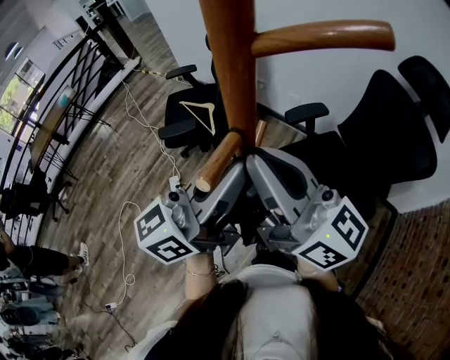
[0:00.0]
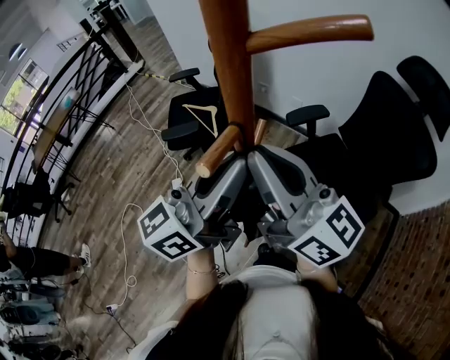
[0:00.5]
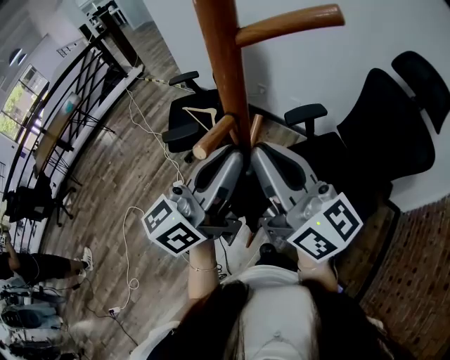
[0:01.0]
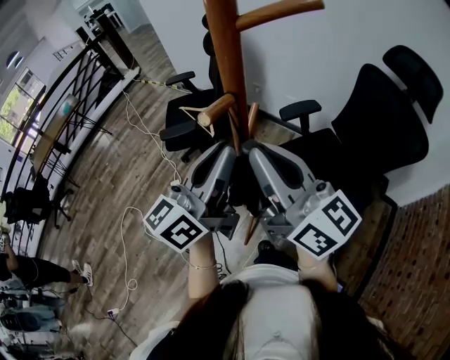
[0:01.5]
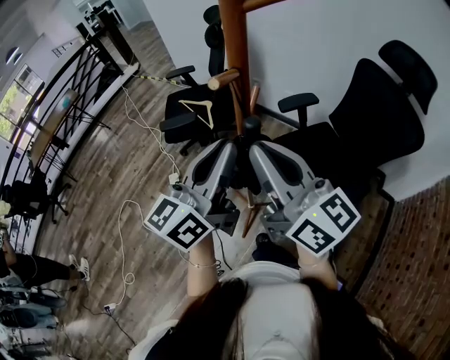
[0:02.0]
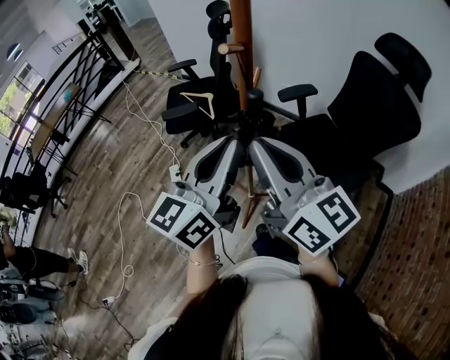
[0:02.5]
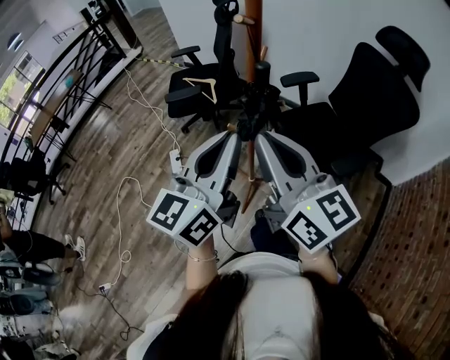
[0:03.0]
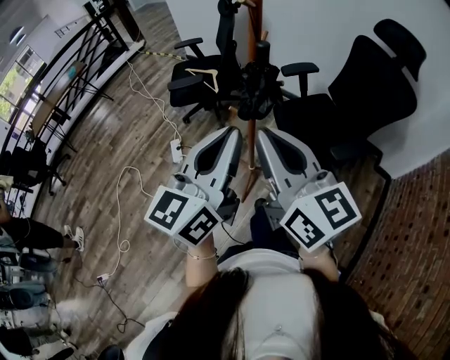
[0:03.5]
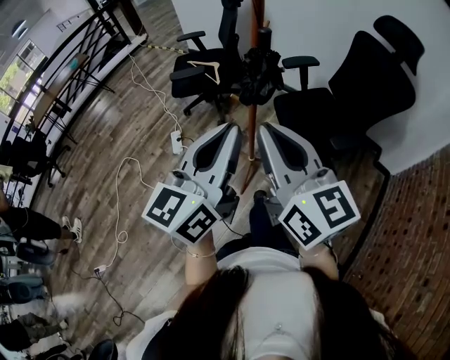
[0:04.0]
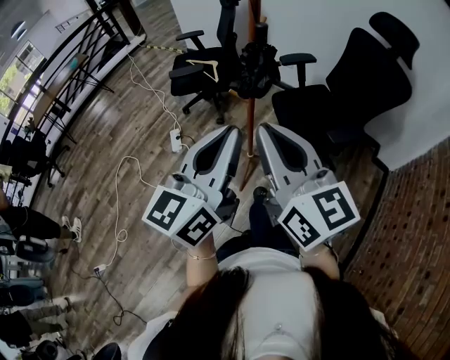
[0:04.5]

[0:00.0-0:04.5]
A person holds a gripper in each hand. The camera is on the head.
0:00.0 to 0:02.0: Both grippers travel together backward, roughly 5 cm.
0:02.0 to 0:04.5: Both grippers travel together backward, about 25 cm.

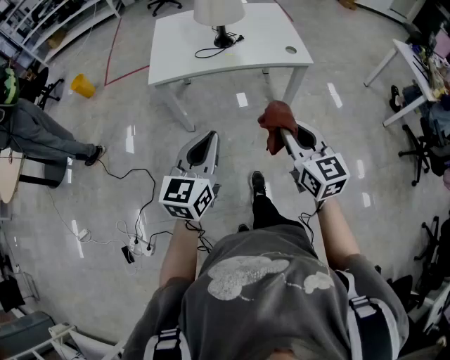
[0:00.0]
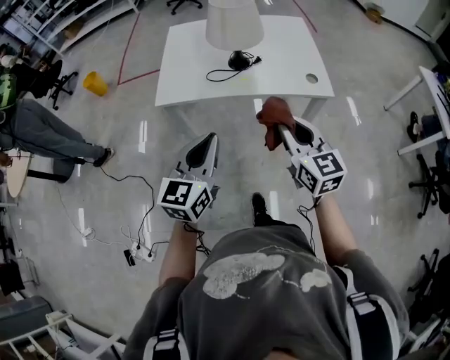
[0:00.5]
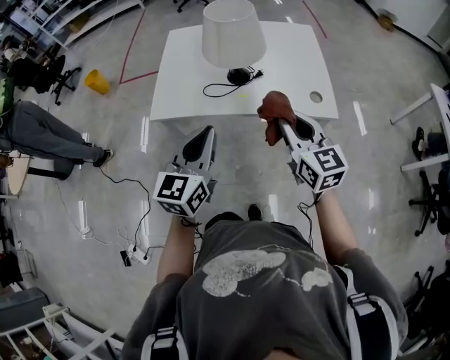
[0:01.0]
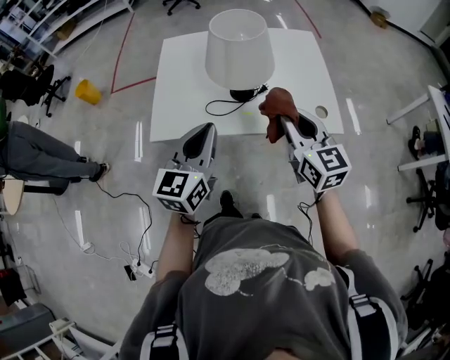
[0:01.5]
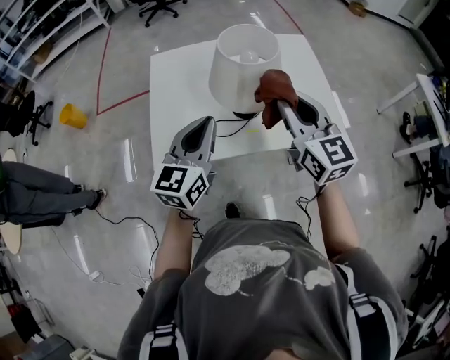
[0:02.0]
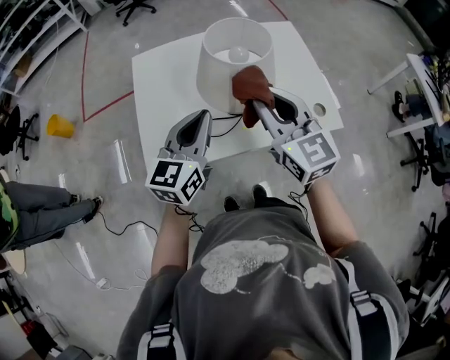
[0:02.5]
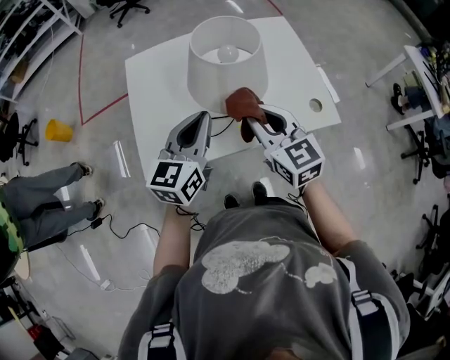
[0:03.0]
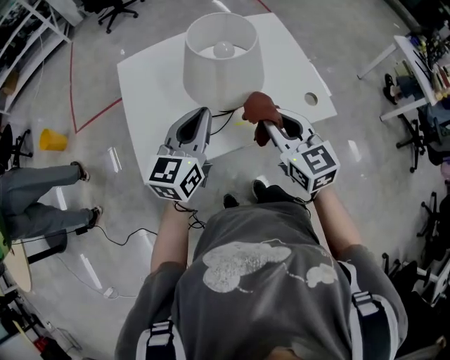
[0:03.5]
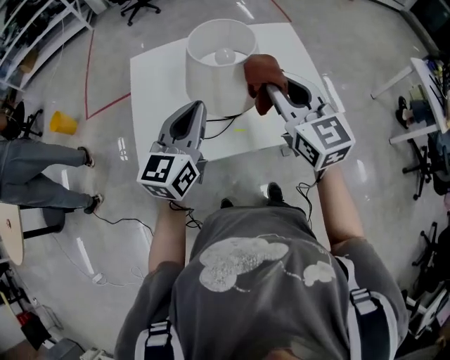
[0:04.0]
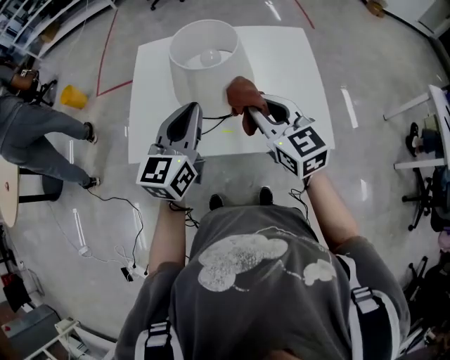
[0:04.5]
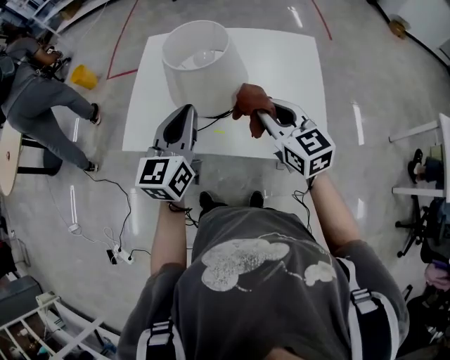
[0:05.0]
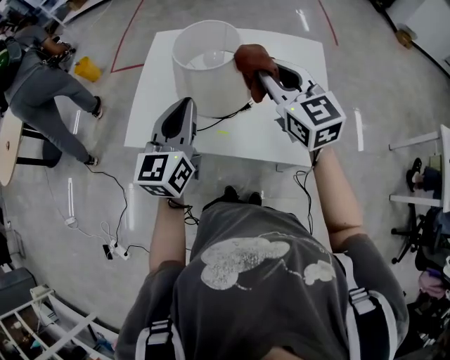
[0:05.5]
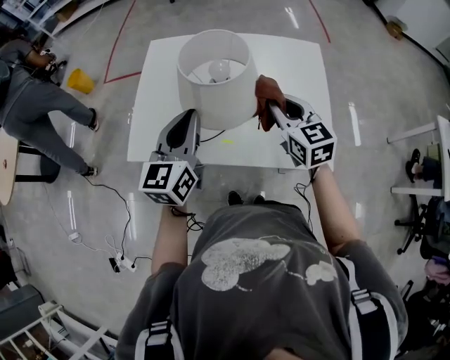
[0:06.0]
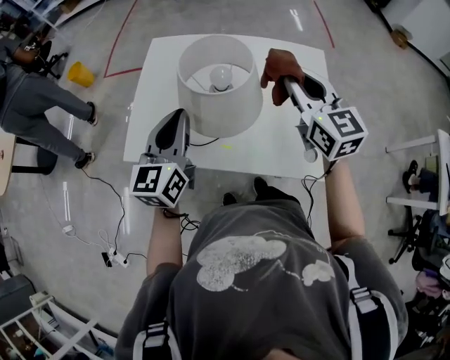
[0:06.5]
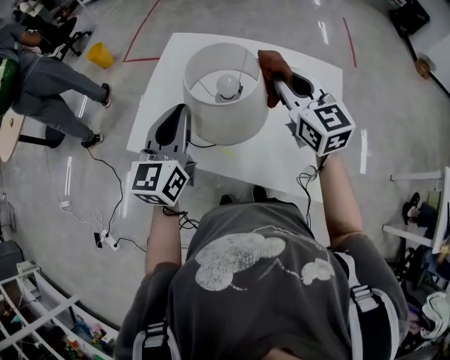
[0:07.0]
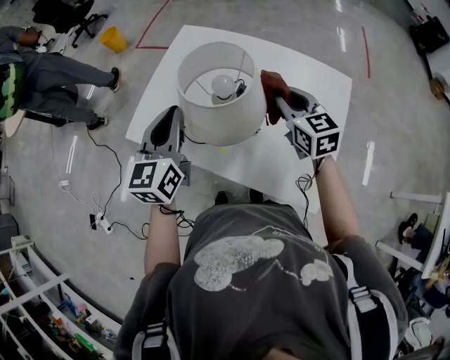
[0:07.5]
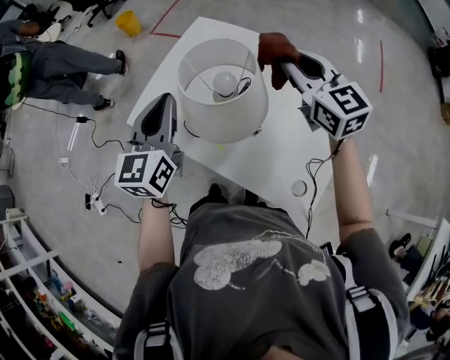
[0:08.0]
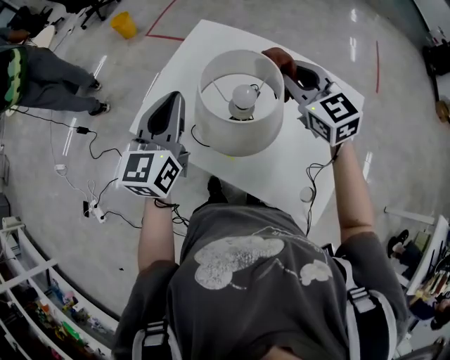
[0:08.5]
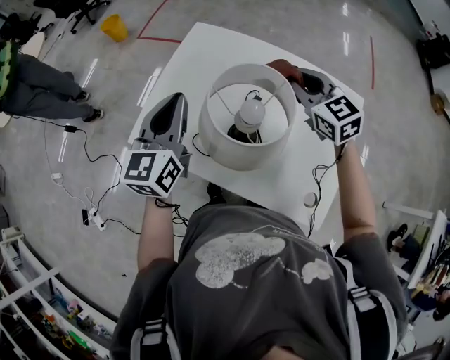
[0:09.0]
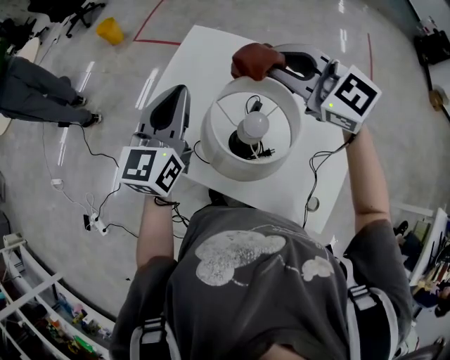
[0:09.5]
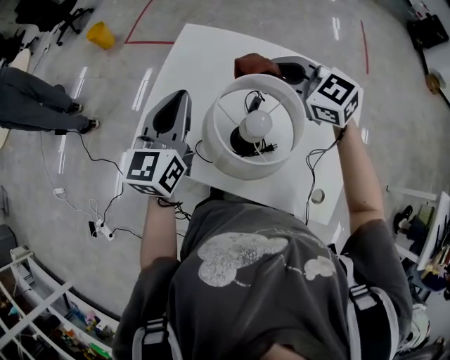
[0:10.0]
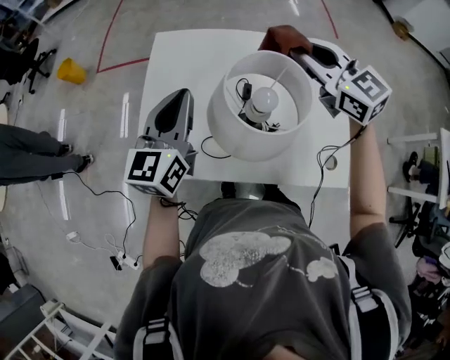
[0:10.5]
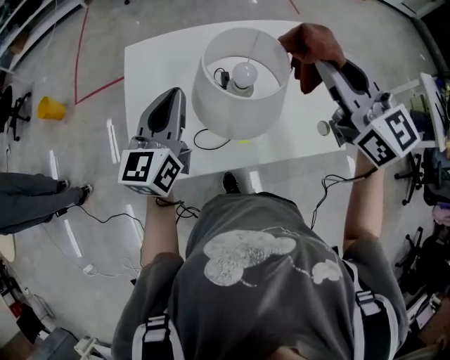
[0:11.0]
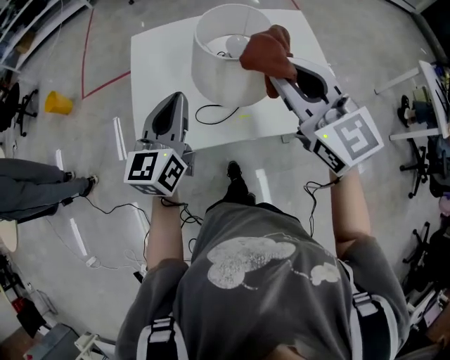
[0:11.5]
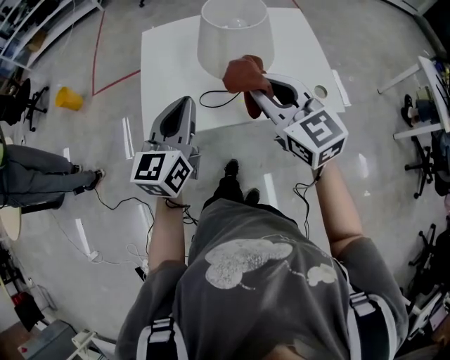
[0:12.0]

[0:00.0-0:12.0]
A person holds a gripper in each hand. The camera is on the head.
0:00.0 to 0:02.0: The pair of grippers is taken forward, roughly 50 cm.
0:02.0 to 0:04.0: The right gripper travels downward and back again, approximately 10 cm each way. Meanwhile the left gripper is displaced to the right by some 5 cm.
0:04.0 to 0:06.0: The left gripper changes its angle by about 20 degrees. The right gripper moves up and down over about 10 cm, changing direction 2 times.
0:06.0 to 0:08.0: The left gripper moves approximately 5 cm, and rotates some 30 degrees. Meanwhile the right gripper goes up and down, approximately 10 cm each way, reversing 2 times, and changes its angle by about 30 degrees.
0:08.0 to 0:10.0: The left gripper travels forward by about 10 cm. The right gripper swings up and down, approximately 10 cm each way, with 2 reversals, and swivels some 20 degrees.
0:10.0 to 0:12.0: The left gripper shifts by about 20 cm, and changes its angle by approximately 30 degrees; the right gripper moves approximately 15 cm upward and comes back, and turns by about 50 degrees.

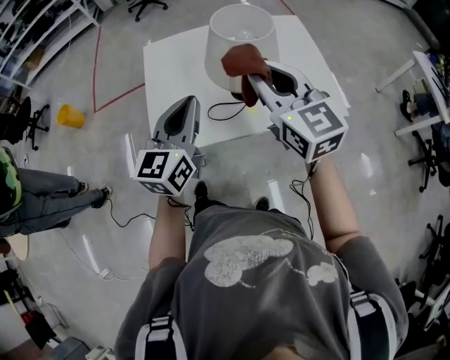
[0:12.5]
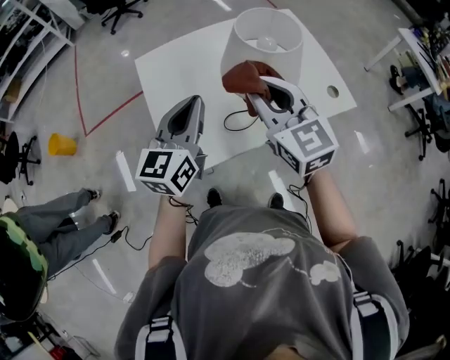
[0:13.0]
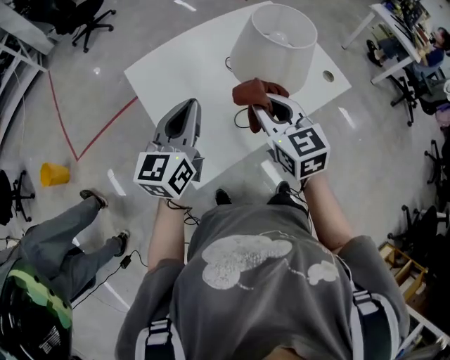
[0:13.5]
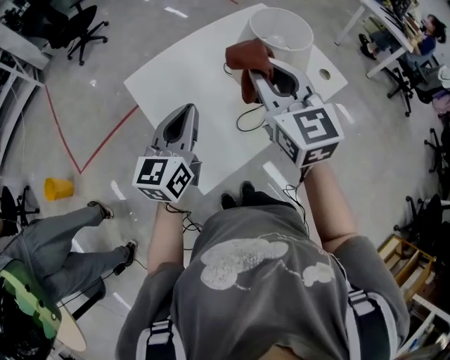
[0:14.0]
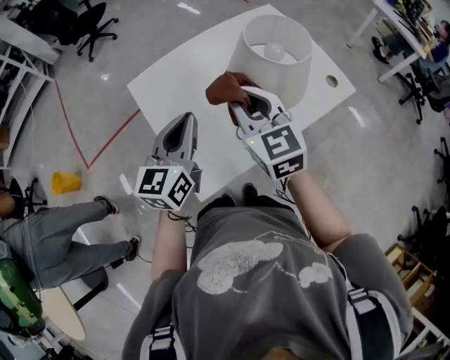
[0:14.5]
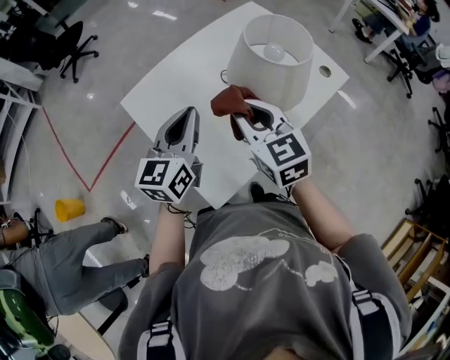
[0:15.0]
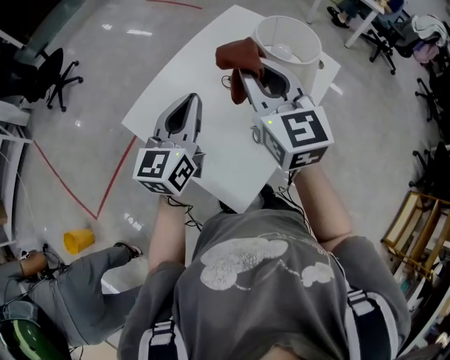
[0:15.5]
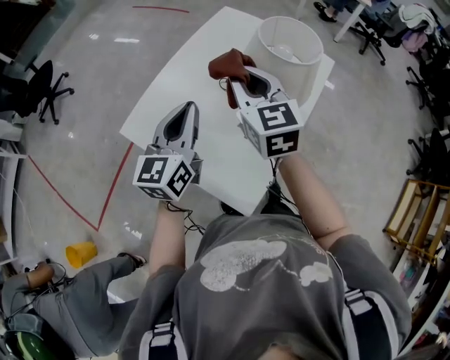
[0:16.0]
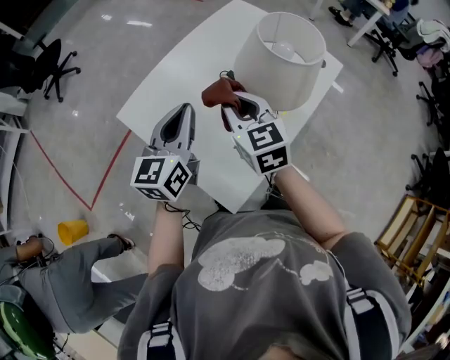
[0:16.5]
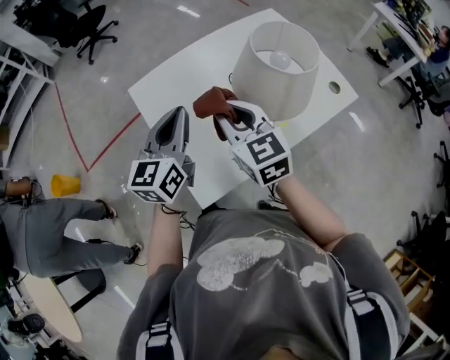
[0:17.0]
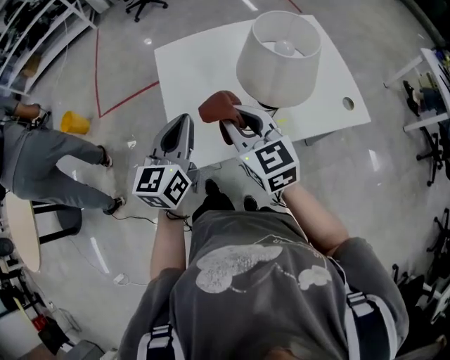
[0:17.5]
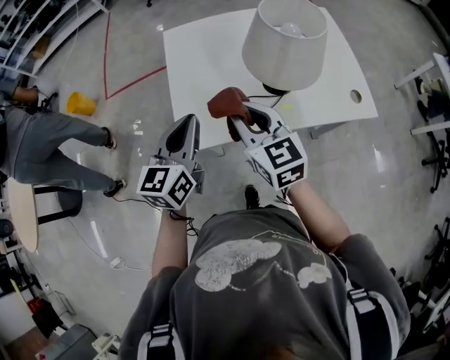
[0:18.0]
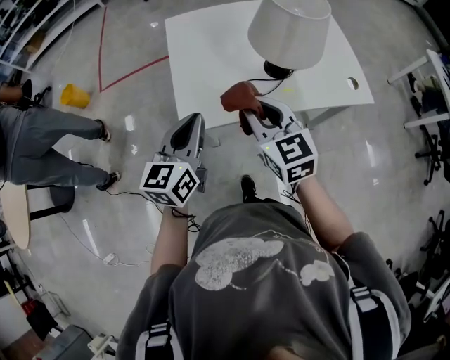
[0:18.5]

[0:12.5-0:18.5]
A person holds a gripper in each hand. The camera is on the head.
0:12.5 to 0:14.5: The right gripper moves up and down over approximately 10 cm, changing direction 2 times, and swivels about 30 degrees; the left gripper shifts by some 20 cm, and swivels roughly 20 degrees.
0:14.5 to 0:16.5: The left gripper shifts by approximately 10 cm, while the right gripper changes place by about 10 cm, and swivels about 20 degrees.
0:16.5 to 0:18.5: The right gripper shifts by approximately 25 cm, and turns by about 40 degrees. The left gripper moves about 30 cm, and swivels roughly 40 degrees.

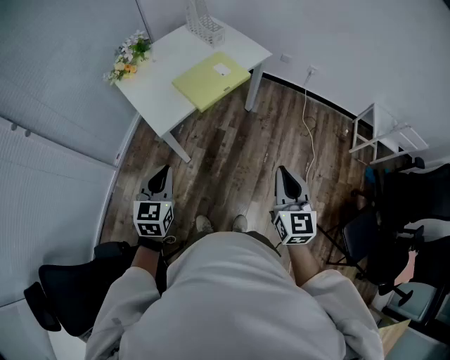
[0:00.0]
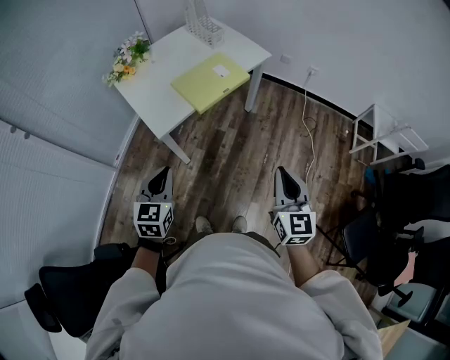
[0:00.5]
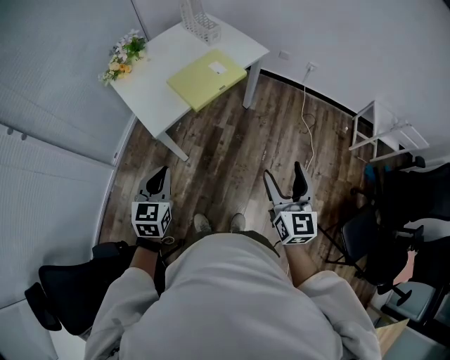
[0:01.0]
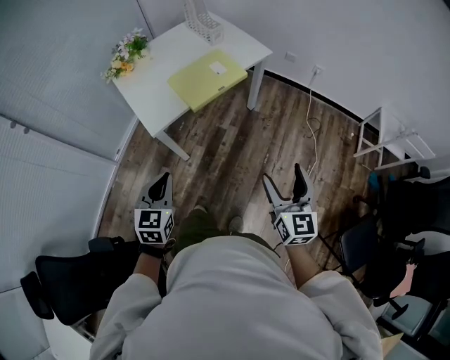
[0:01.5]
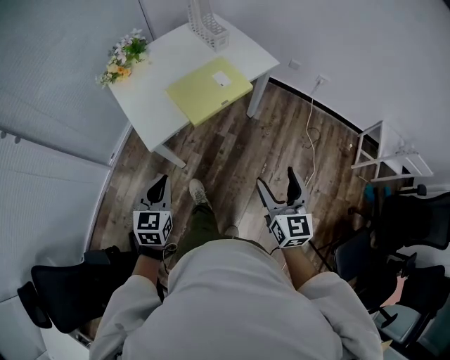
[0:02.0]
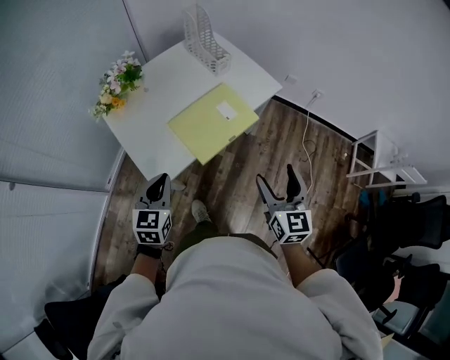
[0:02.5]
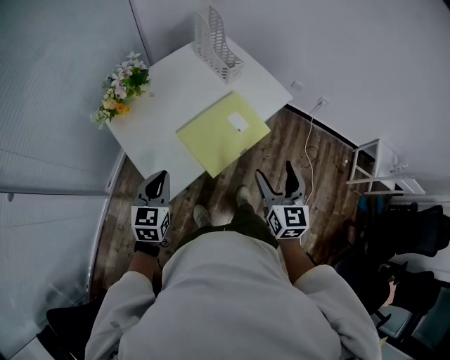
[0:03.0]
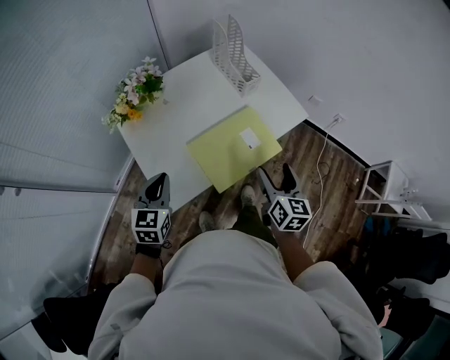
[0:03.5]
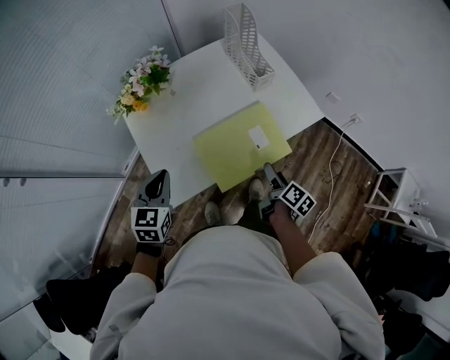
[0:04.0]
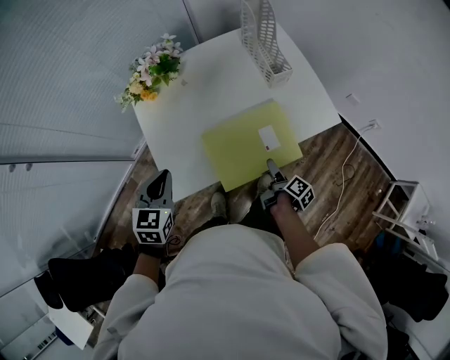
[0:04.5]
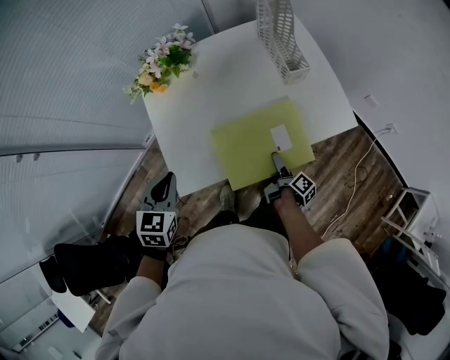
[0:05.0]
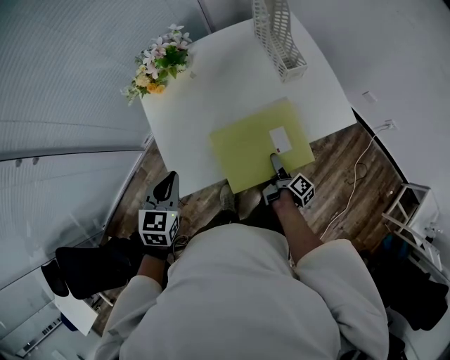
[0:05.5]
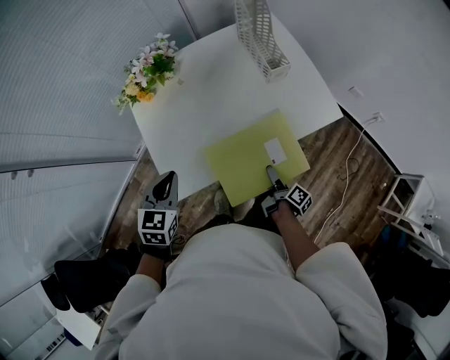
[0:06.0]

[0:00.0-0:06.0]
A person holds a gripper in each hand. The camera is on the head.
0:00.0 to 0:02.0: The left gripper is displaced forward and downward by approximately 10 cm; the right gripper moves forward, about 10 cm, and opens up.
0:02.0 to 0:04.0: The right gripper goes some 40 cm forward and downward, and rotates around the line of its fingers by some 60 degrees, clockwise from behind. Meanwhile the left gripper shifts approximately 30 cm forward.
0:04.0 to 0:06.0: The right gripper moves downward, roughly 10 cm, and swivels about 30 degrees.
